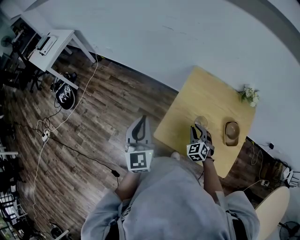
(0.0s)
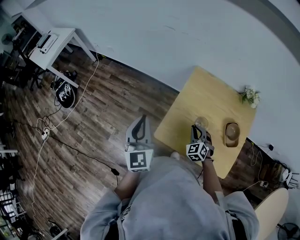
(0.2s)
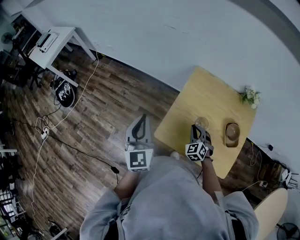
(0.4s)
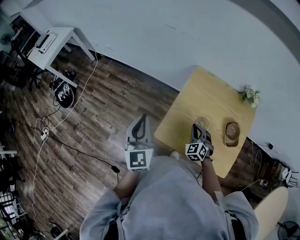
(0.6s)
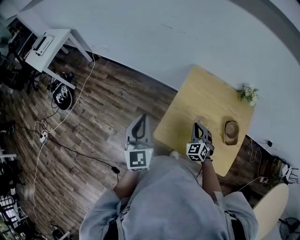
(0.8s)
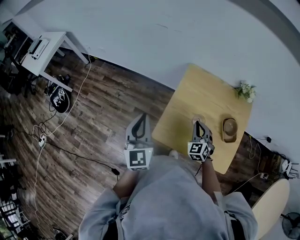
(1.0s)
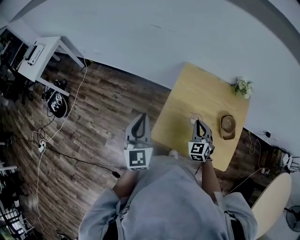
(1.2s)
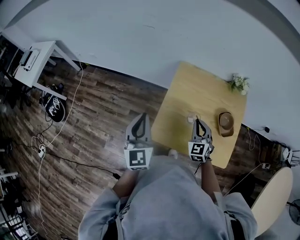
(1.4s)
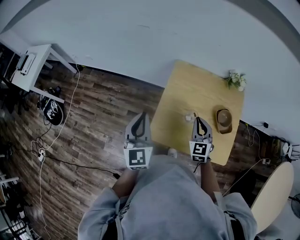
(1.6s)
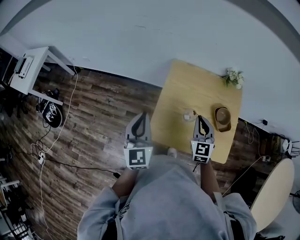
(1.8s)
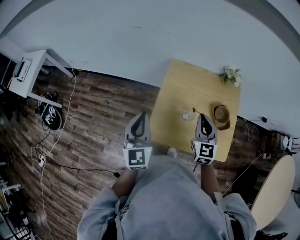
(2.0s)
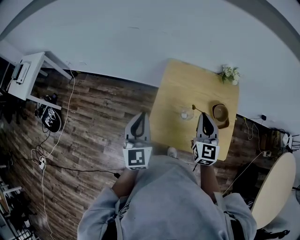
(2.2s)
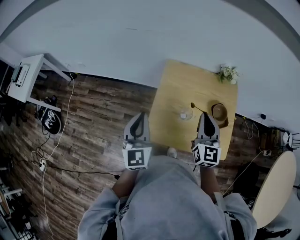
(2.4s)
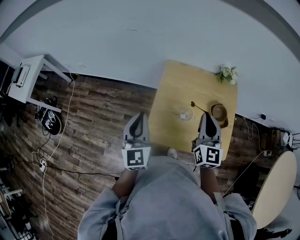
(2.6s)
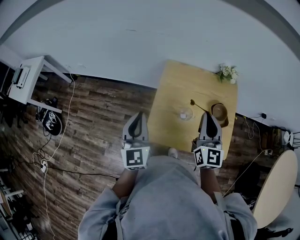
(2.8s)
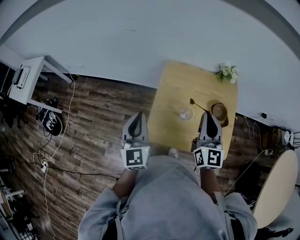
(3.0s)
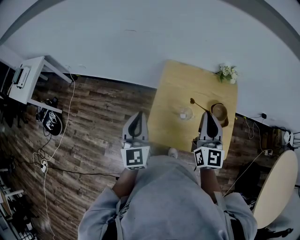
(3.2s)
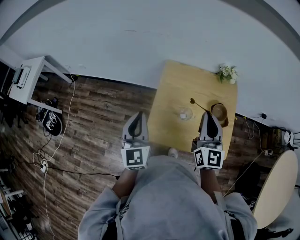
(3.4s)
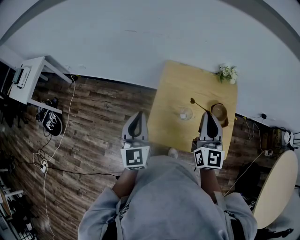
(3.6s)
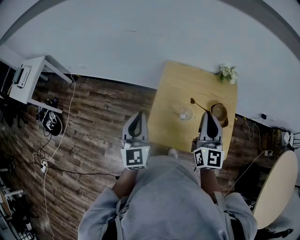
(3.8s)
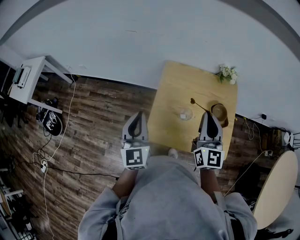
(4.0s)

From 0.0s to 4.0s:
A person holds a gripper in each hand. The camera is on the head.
From 0.0s to 1.4s: The right gripper is displaced upward by roughly 10 cm, and turns by about 20 degrees.
From 1.4s to 2.6s: The right gripper shifts about 15 cm upward, and swivels about 40 degrees.
From 2.6s to 4.0s: The grippers make only small movements.

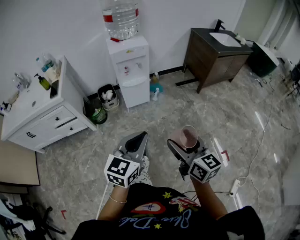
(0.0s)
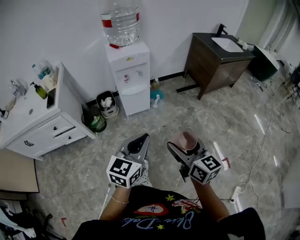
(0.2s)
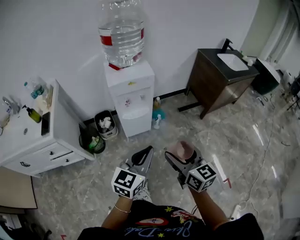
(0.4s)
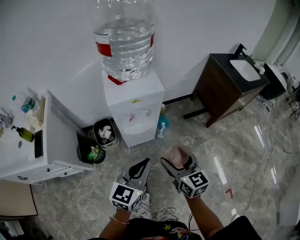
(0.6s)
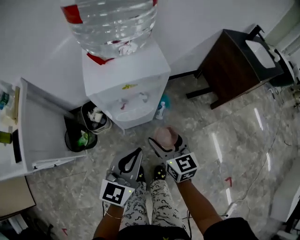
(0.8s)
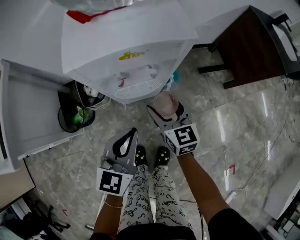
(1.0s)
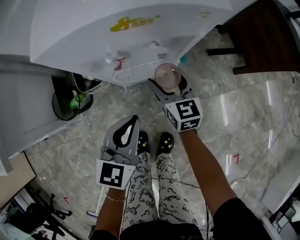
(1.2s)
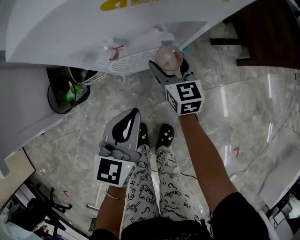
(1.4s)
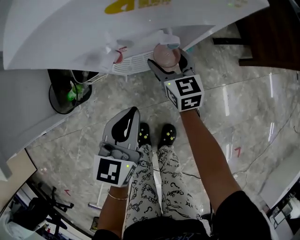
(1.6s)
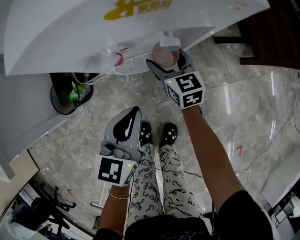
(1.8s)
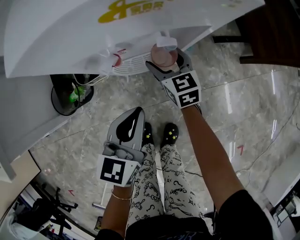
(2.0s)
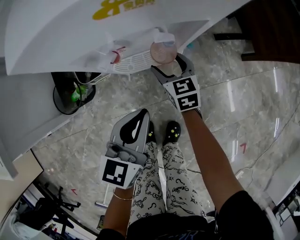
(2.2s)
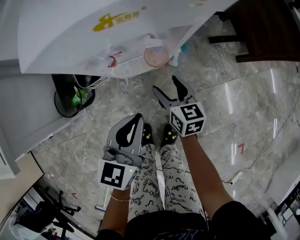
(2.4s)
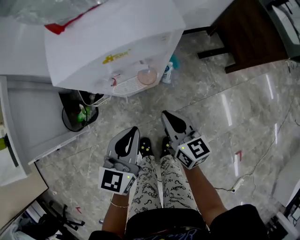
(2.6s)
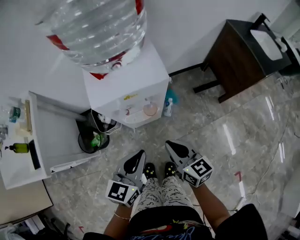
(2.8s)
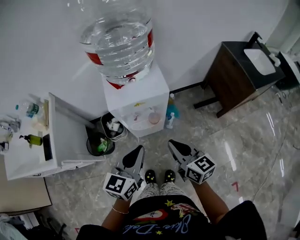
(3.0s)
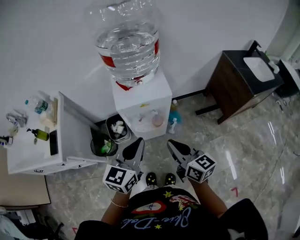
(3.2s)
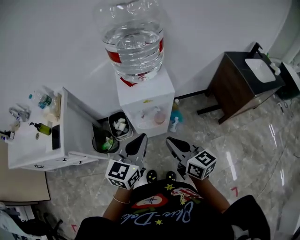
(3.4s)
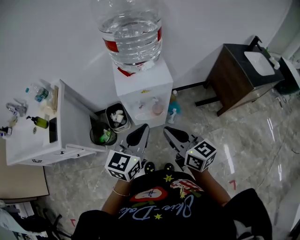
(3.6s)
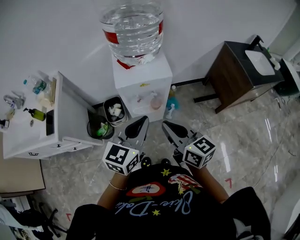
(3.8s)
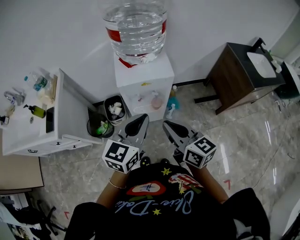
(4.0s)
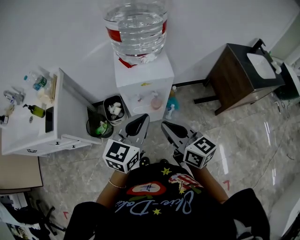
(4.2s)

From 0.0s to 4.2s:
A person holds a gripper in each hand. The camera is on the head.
From 0.0s to 1.4s: Both grippers are carried forward, roughly 60 cm. The grippers both shift downward by about 40 cm. The right gripper swivels some 20 degrees.
From 1.4s to 2.8s: The right gripper goes roughly 30 cm upward and backward, turns by some 20 degrees, and closes its fingers, while the left gripper shifts about 20 cm upward.
From 2.8s to 4.2s: The two grippers go roughly 20 cm upward.

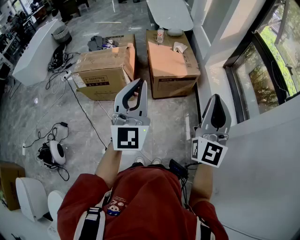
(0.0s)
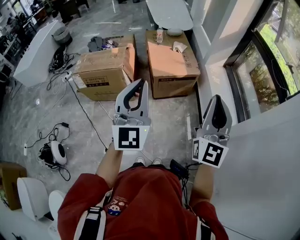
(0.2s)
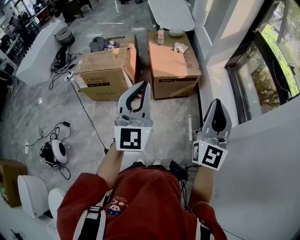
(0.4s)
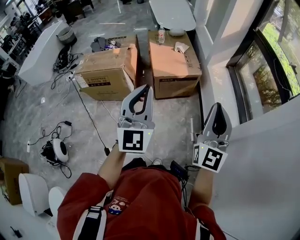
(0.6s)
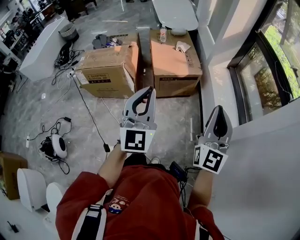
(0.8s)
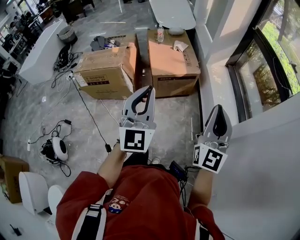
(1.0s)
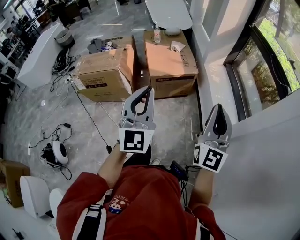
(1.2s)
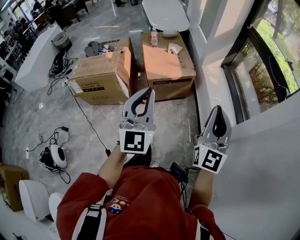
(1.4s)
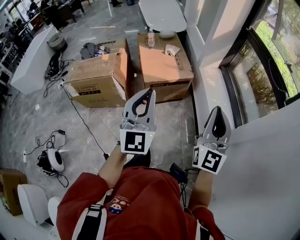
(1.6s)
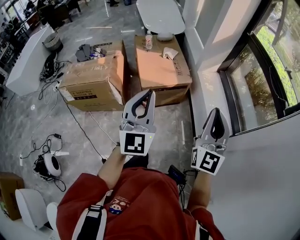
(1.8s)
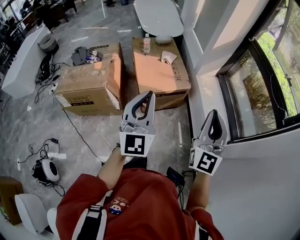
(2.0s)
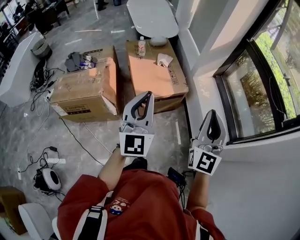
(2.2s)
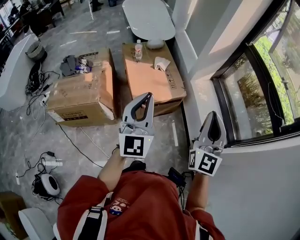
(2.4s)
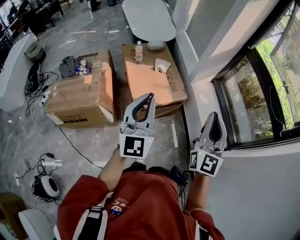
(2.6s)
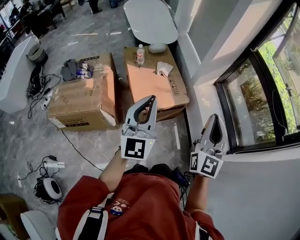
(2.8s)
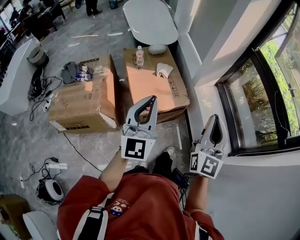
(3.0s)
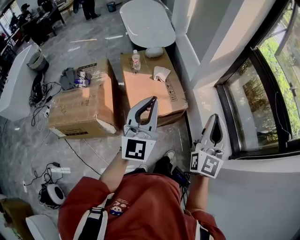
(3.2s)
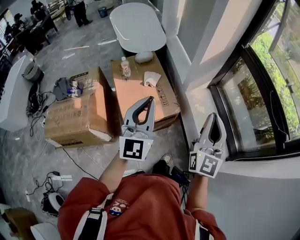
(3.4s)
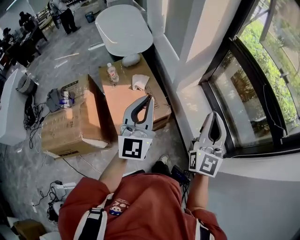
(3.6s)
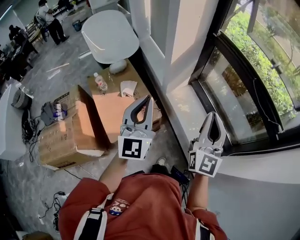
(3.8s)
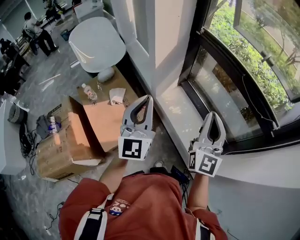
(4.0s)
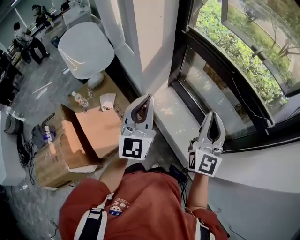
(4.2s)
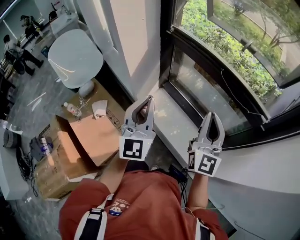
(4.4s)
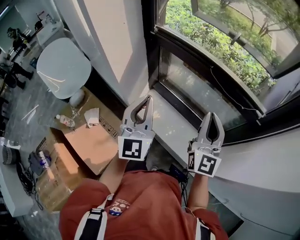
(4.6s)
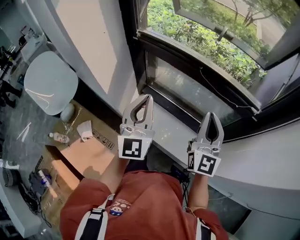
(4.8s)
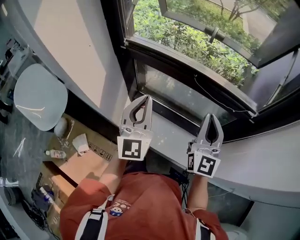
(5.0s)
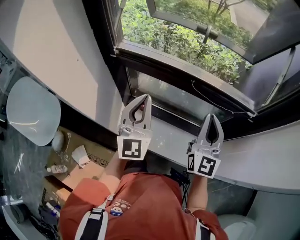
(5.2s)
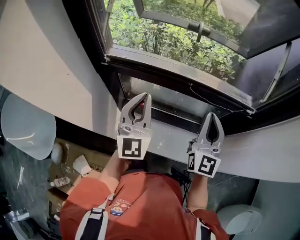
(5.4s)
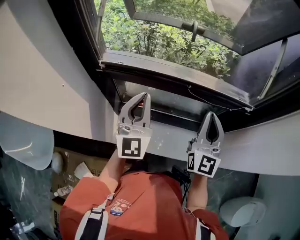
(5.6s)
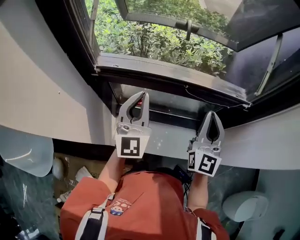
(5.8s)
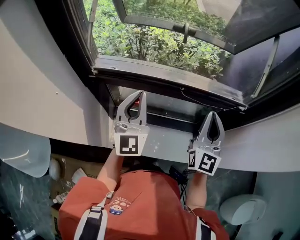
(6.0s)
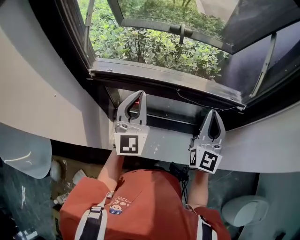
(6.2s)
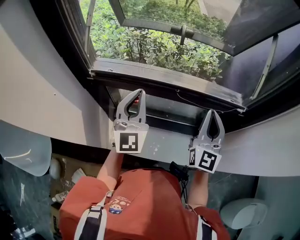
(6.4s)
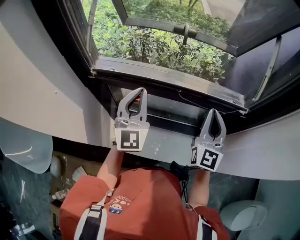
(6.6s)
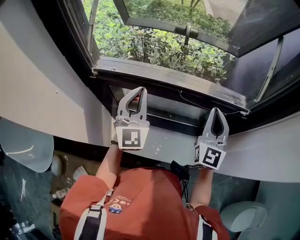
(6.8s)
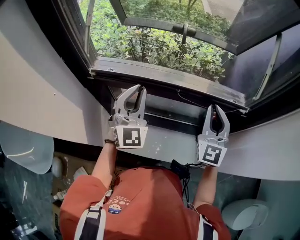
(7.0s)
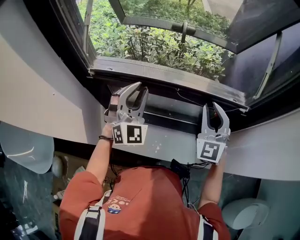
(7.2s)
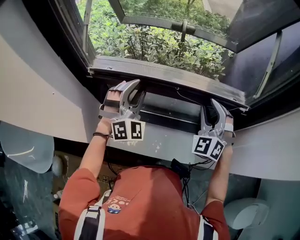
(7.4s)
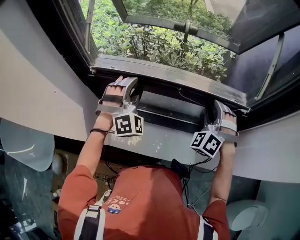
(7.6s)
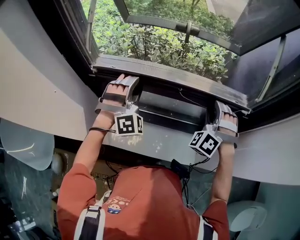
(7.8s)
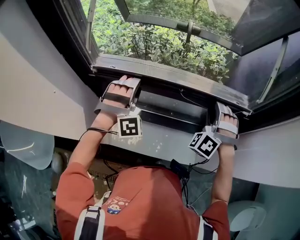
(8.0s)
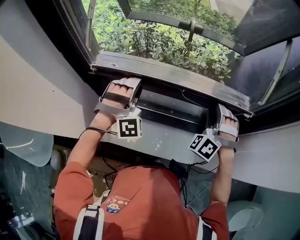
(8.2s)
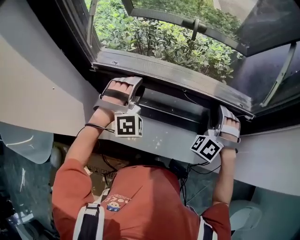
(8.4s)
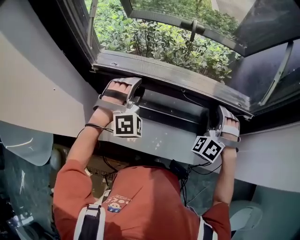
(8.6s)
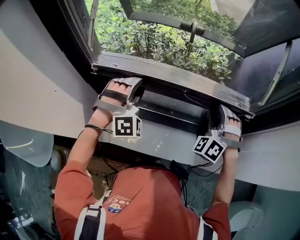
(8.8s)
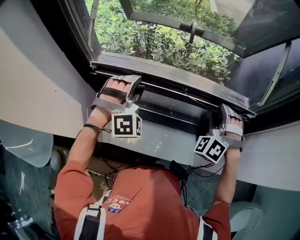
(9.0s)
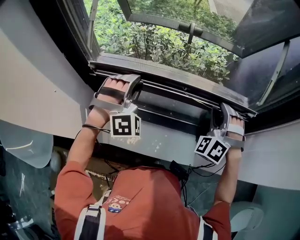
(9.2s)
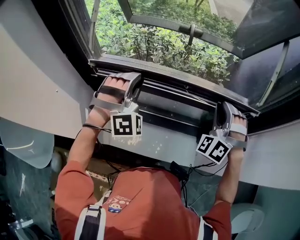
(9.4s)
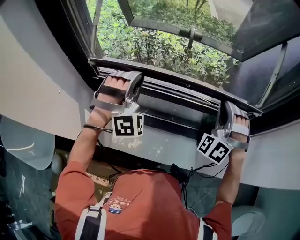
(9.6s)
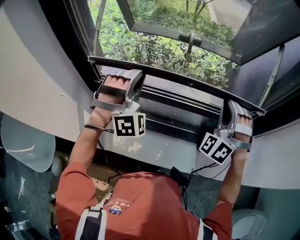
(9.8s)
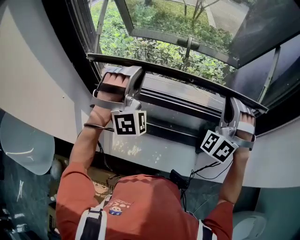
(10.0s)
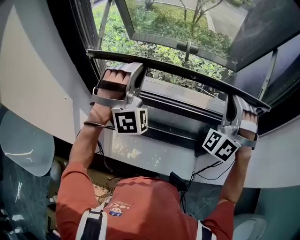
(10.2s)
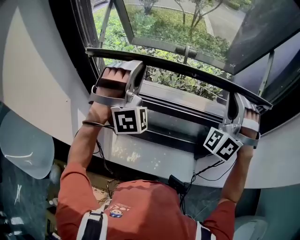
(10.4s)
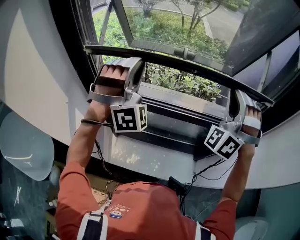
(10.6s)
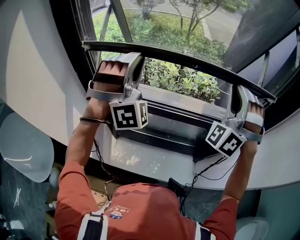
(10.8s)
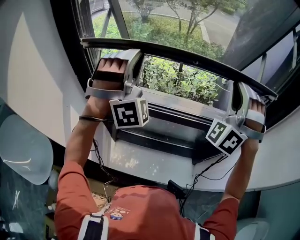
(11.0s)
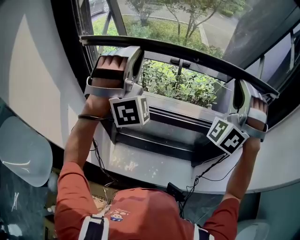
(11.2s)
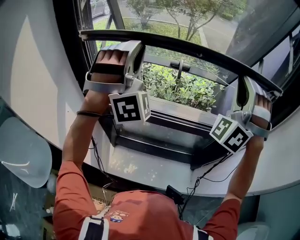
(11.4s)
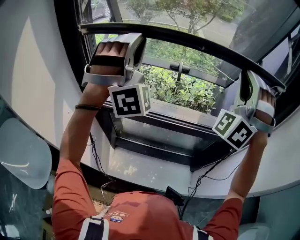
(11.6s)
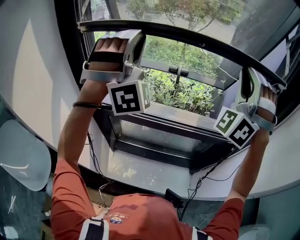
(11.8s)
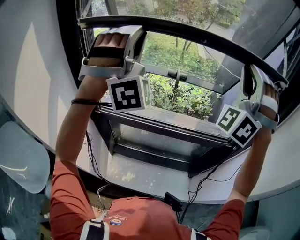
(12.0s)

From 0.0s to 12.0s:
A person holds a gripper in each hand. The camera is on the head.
From 0.0s to 1.6s: The left gripper goes approximately 10 cm to the right and forward; the right gripper shifts roughly 10 cm to the right.
From 1.6s to 3.0s: The grippers both shift forward by approximately 25 cm.
From 3.0s to 4.4s: The right gripper moves about 40 cm, and swivels roughly 30 degrees, while the left gripper changes place by roughly 50 cm, and swivels roughly 30 degrees.
From 4.4s to 6.0s: The left gripper changes place by some 30 cm, and rotates approximately 40 degrees, while the right gripper changes place by approximately 15 cm, and turns by some 40 degrees.
From 6.0s to 7.6s: Both grippers travel together forward and downward, some 10 cm. The left gripper rotates around the line of its fingers by approximately 60 degrees, clockwise from behind, and opens; the right gripper rotates around the line of its fingers by approximately 70 degrees, counterclockwise from behind, and opens its fingers.
From 9.0s to 10.4s: The grippers both shift upward by some 20 cm. The left gripper swivels roughly 30 degrees, and closes. The right gripper rotates roughly 30 degrees, and closes up.
From 10.4s to 12.0s: Both grippers travel together upward, approximately 20 cm.

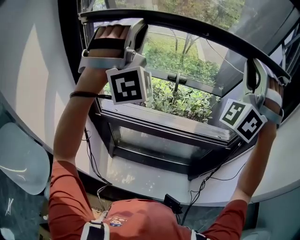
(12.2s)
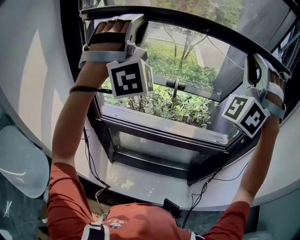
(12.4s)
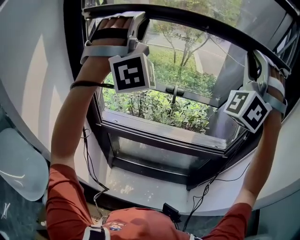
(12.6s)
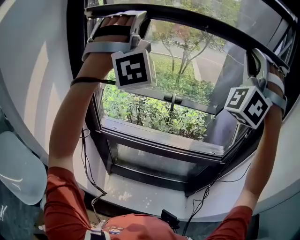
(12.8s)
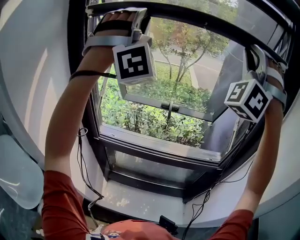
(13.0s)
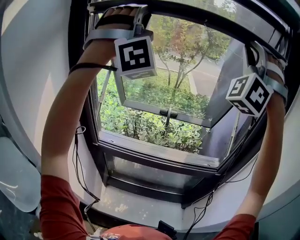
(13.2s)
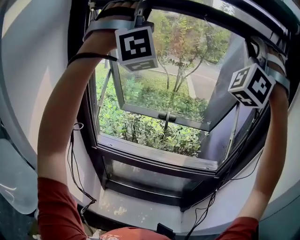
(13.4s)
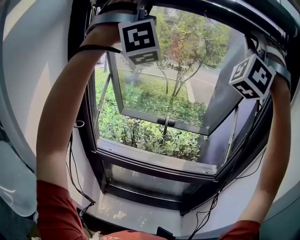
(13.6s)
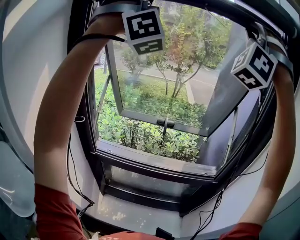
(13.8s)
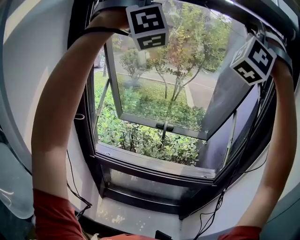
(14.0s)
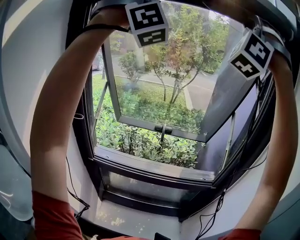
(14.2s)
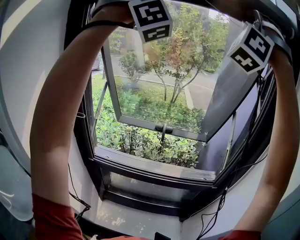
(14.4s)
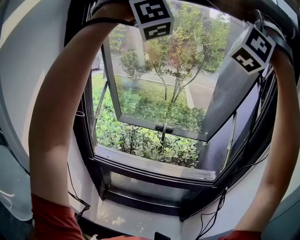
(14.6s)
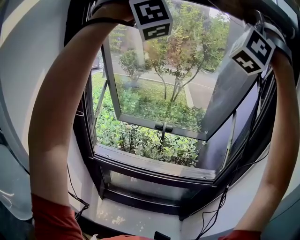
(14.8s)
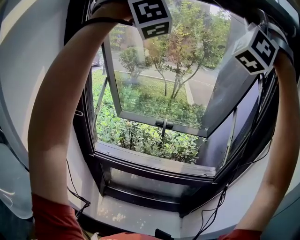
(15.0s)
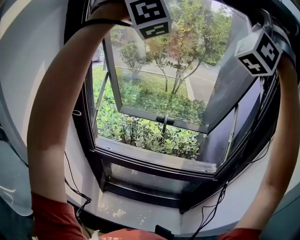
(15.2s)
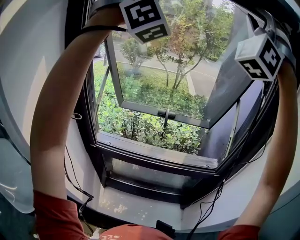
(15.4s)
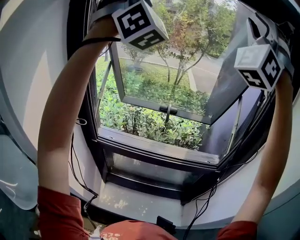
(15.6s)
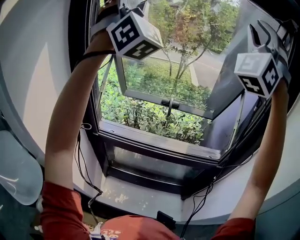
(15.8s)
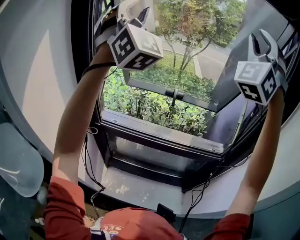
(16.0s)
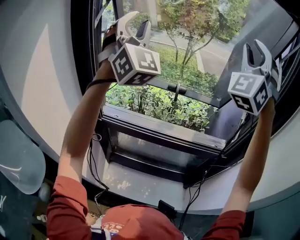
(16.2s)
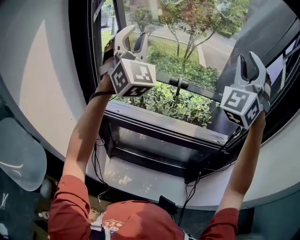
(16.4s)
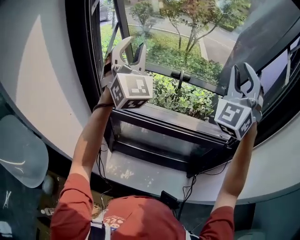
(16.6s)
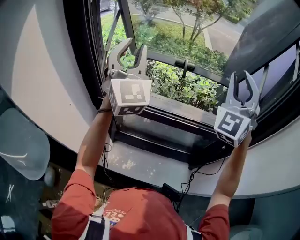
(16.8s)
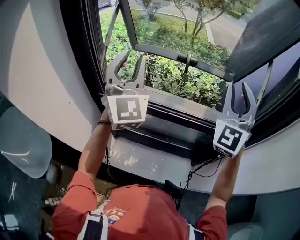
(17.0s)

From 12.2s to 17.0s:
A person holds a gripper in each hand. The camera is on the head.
From 12.2s to 13.8s: The grippers both shift upward by some 25 cm.
From 13.8s to 15.4s: The grippers stay close to where they were, moving slightly.
From 15.4s to 17.0s: The two grippers go some 40 cm downward. The right gripper twists roughly 50 degrees clockwise, seen from behind; the left gripper rolls counterclockwise, seen from behind, by roughly 50 degrees.
